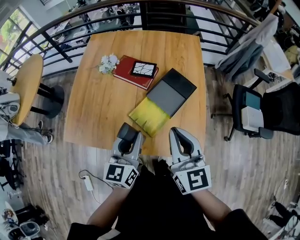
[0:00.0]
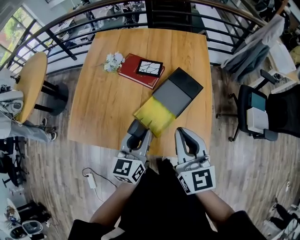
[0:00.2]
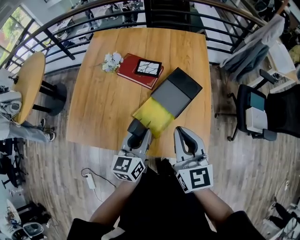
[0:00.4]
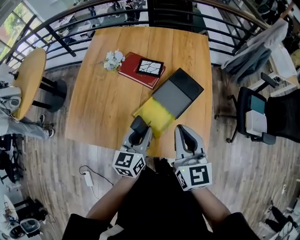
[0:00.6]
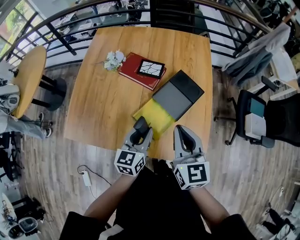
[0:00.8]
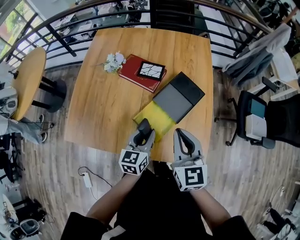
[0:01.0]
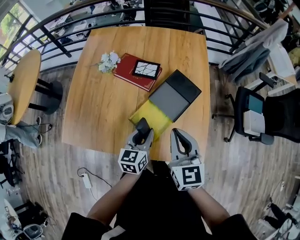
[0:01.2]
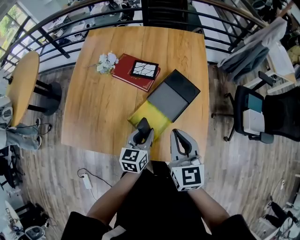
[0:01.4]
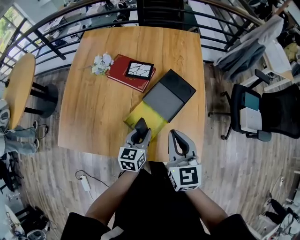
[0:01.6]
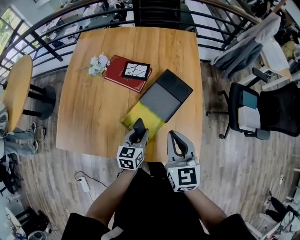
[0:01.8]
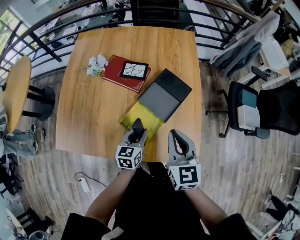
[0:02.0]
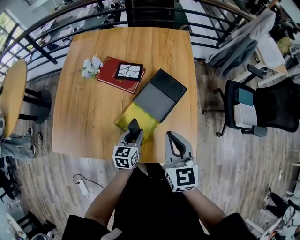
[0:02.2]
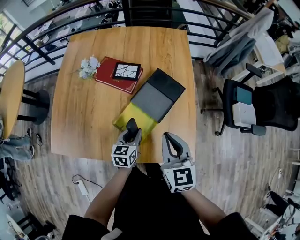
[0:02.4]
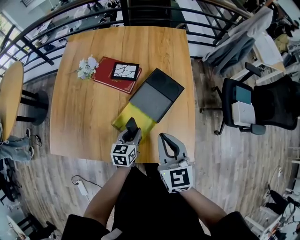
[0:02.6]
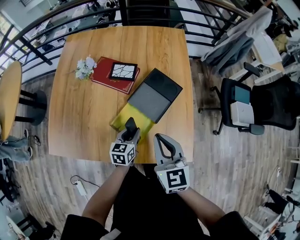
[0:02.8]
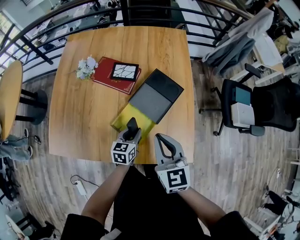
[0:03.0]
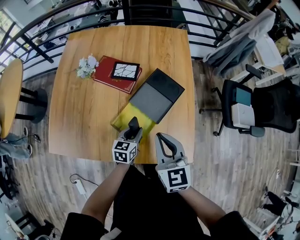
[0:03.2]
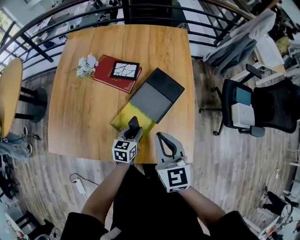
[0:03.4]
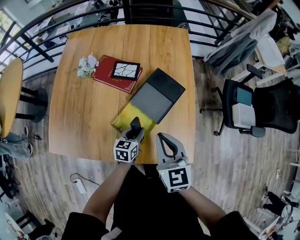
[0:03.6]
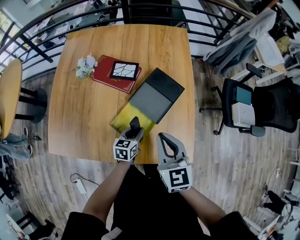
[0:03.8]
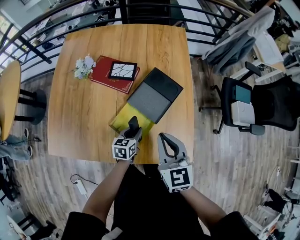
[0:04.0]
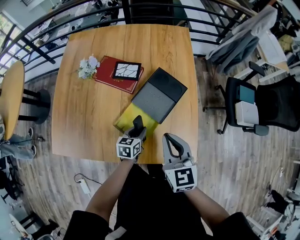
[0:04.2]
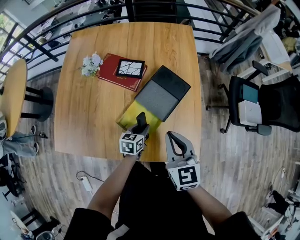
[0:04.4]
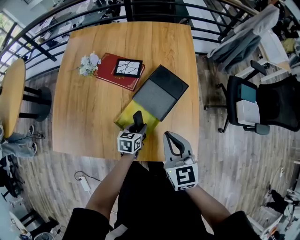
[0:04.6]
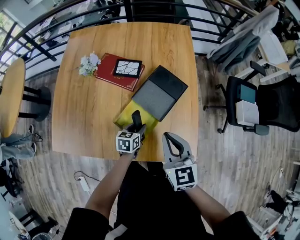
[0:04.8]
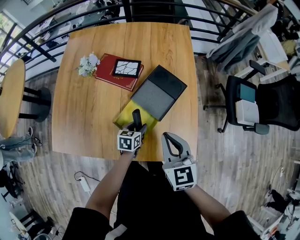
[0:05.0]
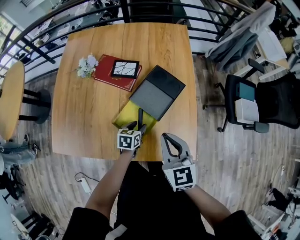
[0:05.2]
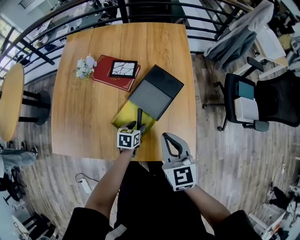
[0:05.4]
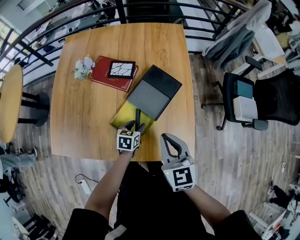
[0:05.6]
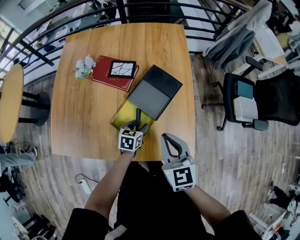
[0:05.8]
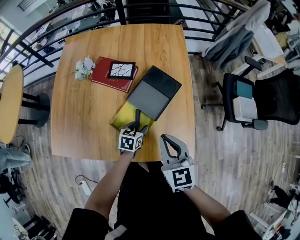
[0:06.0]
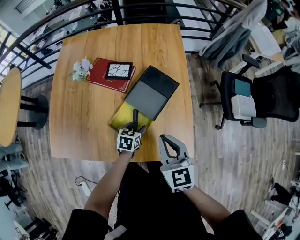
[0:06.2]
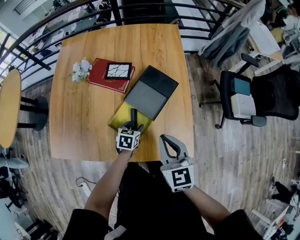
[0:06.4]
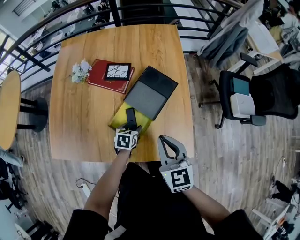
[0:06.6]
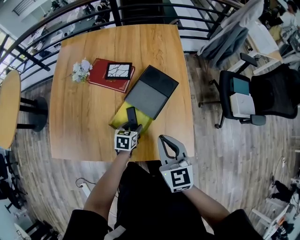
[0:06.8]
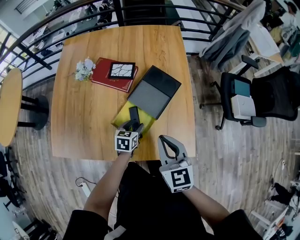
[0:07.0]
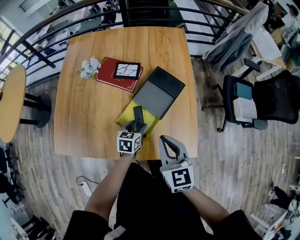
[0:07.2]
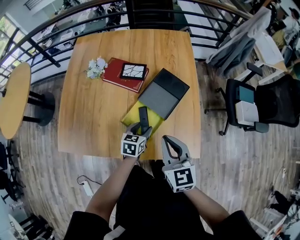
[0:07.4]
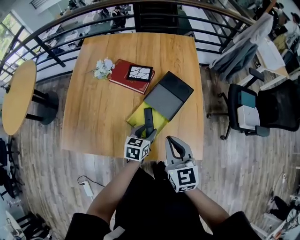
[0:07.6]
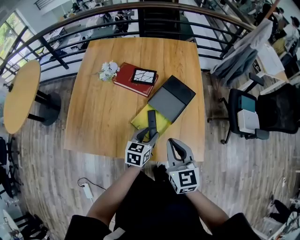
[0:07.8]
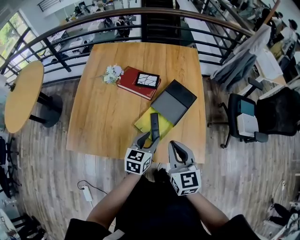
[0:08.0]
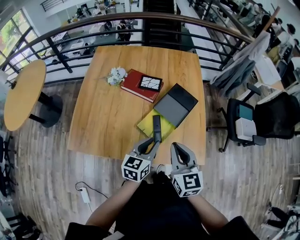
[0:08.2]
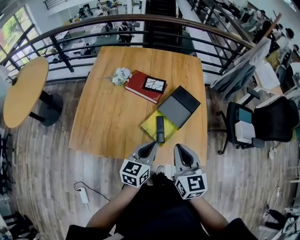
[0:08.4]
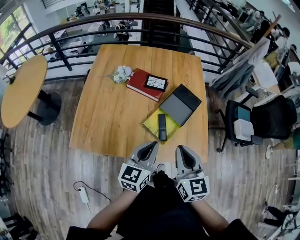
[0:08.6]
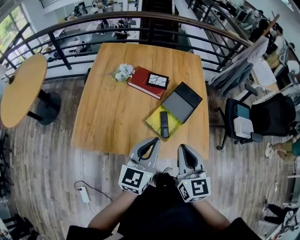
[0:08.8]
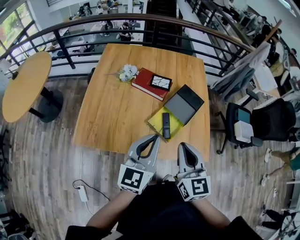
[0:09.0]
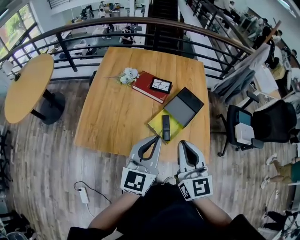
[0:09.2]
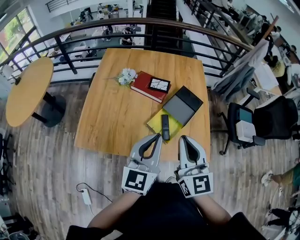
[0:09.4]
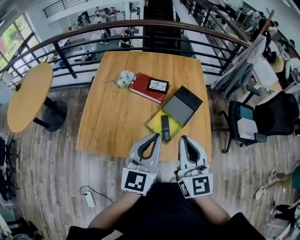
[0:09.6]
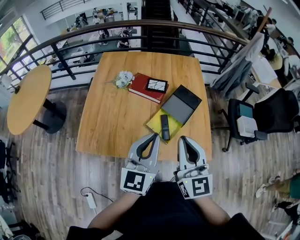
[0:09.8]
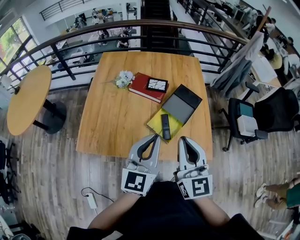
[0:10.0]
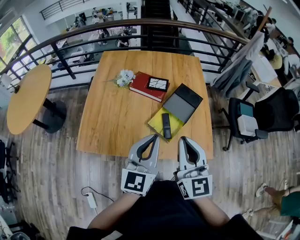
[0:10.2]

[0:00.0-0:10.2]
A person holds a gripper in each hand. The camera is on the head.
0:00.0 to 0:01.4: The left gripper travels downward and forward by about 15 cm. Meanwhile the right gripper goes about 5 cm downward.
0:01.4 to 0:03.0: The left gripper moves downward, approximately 10 cm.
0:03.0 to 0:04.4: The grippers make only small movements.
0:04.4 to 0:05.8: The left gripper opens its fingers.
0:05.8 to 0:07.2: The grippers move only a little.
0:07.2 to 0:08.8: The left gripper shifts about 35 cm upward and backward, points its fingers roughly 40 degrees further upward, and closes up; the right gripper heads backward, upward and to the left, covering approximately 15 cm.
0:08.8 to 0:10.2: The right gripper shifts roughly 5 cm upward.

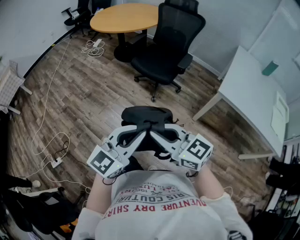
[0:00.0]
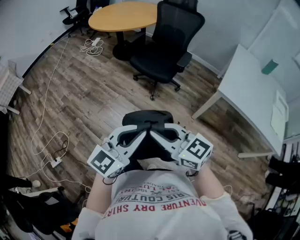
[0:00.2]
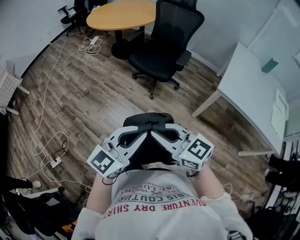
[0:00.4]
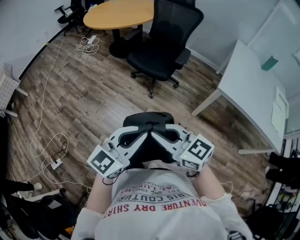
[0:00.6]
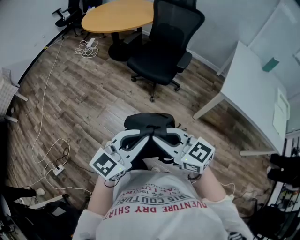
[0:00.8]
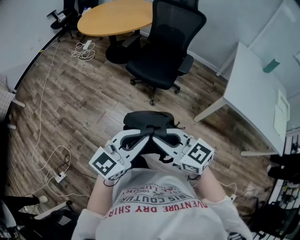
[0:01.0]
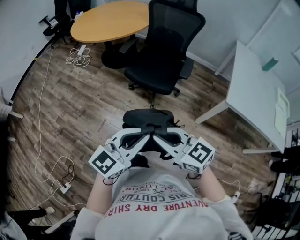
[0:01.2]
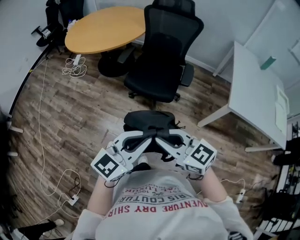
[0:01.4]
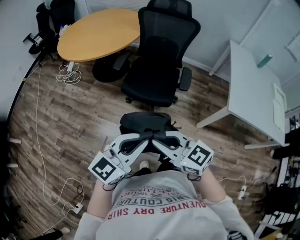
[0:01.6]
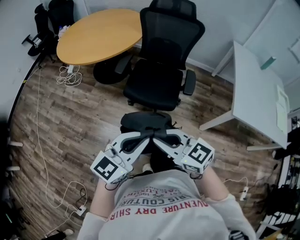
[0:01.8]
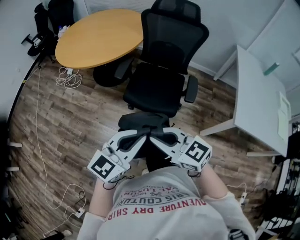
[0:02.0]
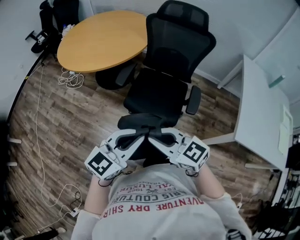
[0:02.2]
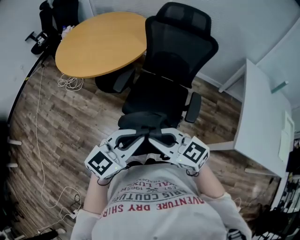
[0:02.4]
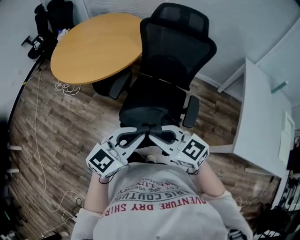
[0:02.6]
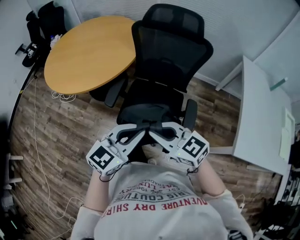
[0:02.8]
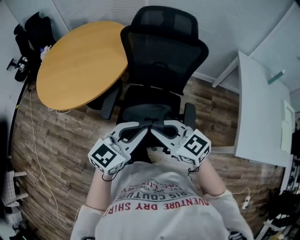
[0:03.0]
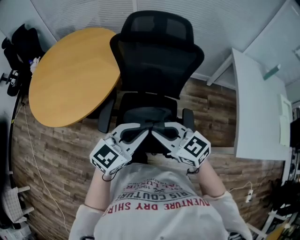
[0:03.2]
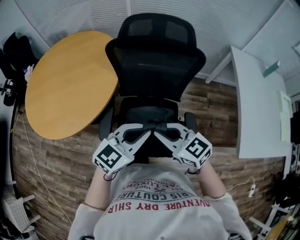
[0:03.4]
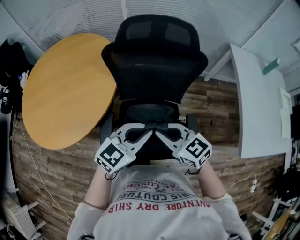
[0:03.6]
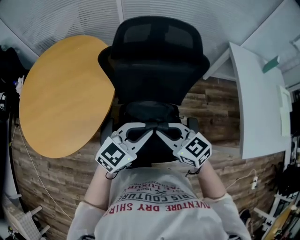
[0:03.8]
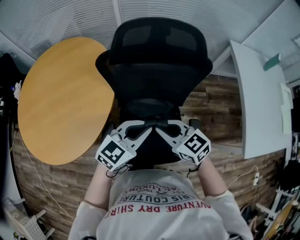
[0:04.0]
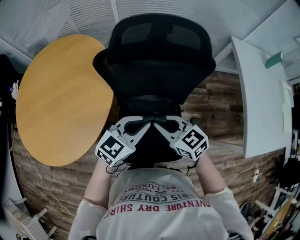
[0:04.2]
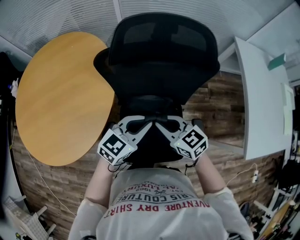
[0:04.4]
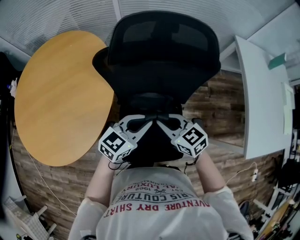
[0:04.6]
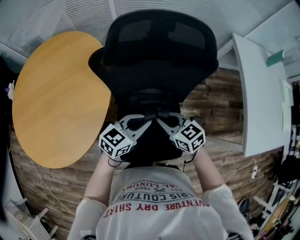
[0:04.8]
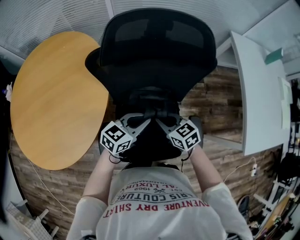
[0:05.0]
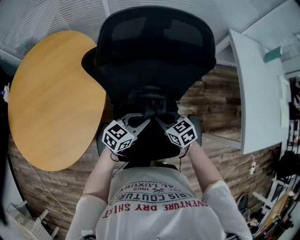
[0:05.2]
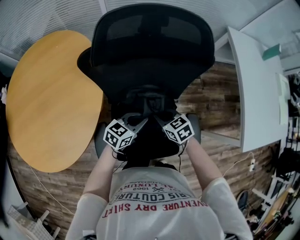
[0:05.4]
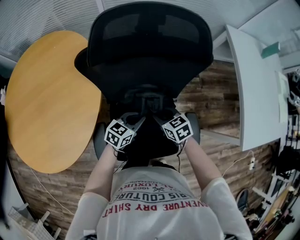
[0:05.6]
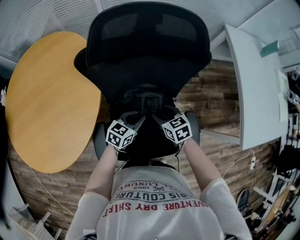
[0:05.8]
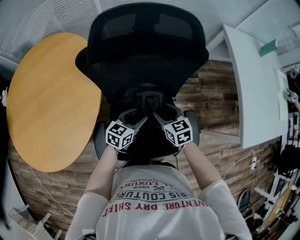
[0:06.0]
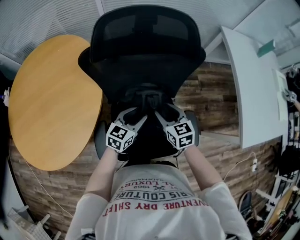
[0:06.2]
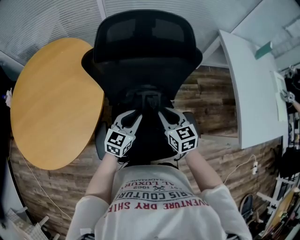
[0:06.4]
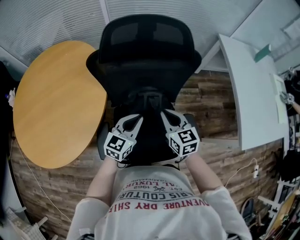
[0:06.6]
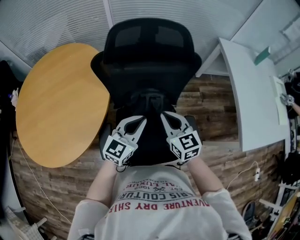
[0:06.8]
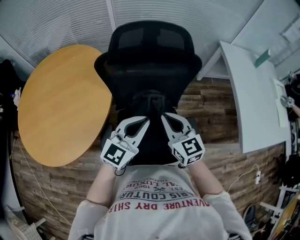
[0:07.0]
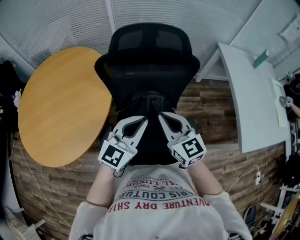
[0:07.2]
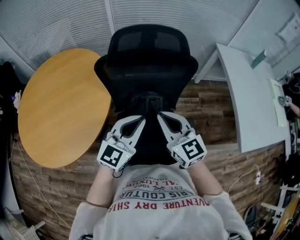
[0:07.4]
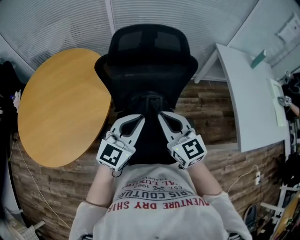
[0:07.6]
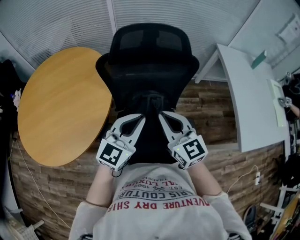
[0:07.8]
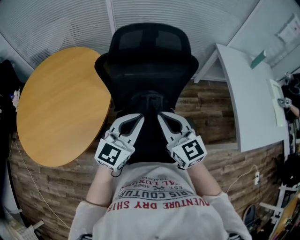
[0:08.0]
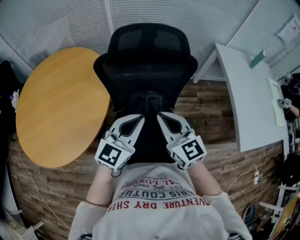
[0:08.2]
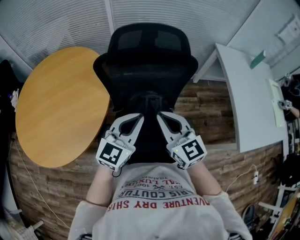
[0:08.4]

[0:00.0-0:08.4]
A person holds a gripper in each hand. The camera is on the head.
0:00.0 to 0:01.4: The two grippers go approximately 25 cm forward.
0:01.4 to 0:02.8: Both grippers move forward, roughly 40 cm.
0:02.8 to 0:04.2: Both grippers travel together forward, approximately 30 cm. The right gripper turns by approximately 30 degrees; the left gripper swivels roughly 20 degrees.
0:04.2 to 0:05.6: The two grippers go roughly 20 cm downward. The left gripper swivels about 20 degrees. The right gripper rotates approximately 20 degrees, and opens up.
0:05.6 to 0:07.0: Both grippers move upward, some 25 cm. The right gripper tilts its fingers some 30 degrees upward, and closes its fingers. Meanwhile the left gripper changes its angle by about 40 degrees, and opens, then closes once more.
0:07.0 to 0:08.4: The right gripper travels upward by approximately 5 cm.

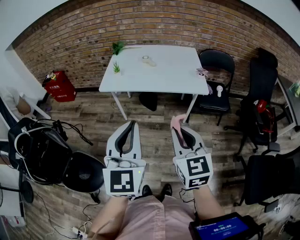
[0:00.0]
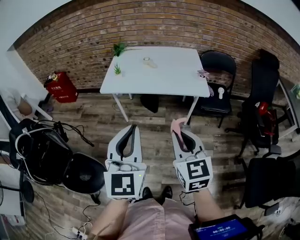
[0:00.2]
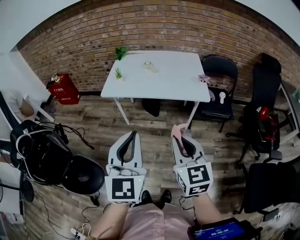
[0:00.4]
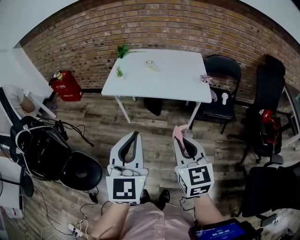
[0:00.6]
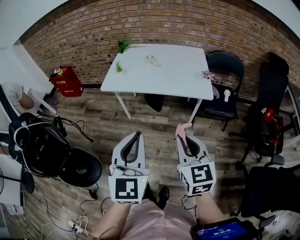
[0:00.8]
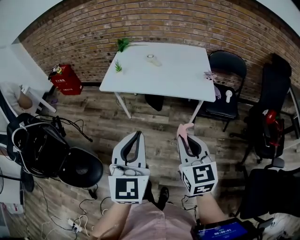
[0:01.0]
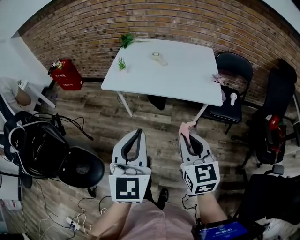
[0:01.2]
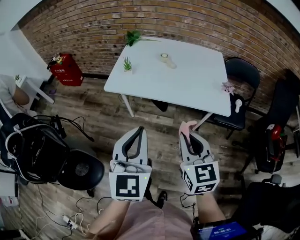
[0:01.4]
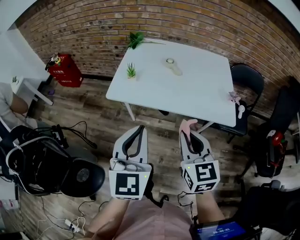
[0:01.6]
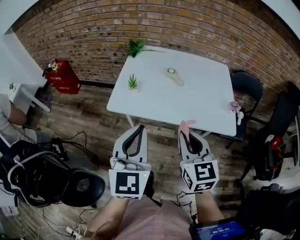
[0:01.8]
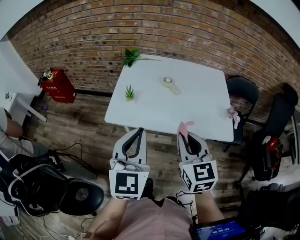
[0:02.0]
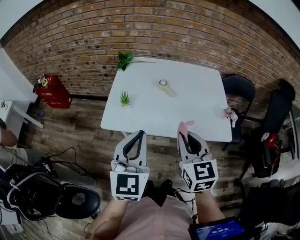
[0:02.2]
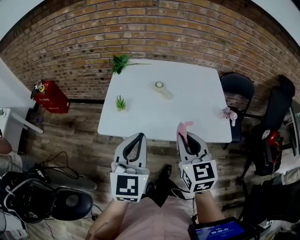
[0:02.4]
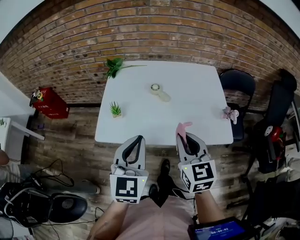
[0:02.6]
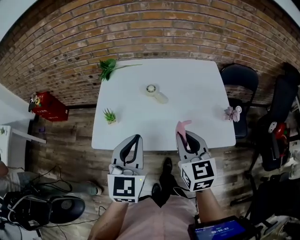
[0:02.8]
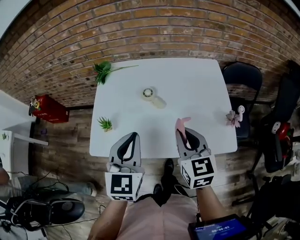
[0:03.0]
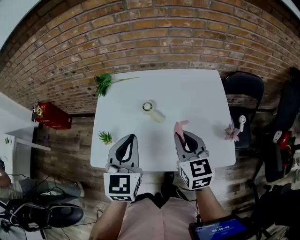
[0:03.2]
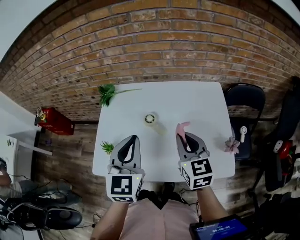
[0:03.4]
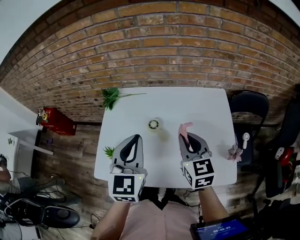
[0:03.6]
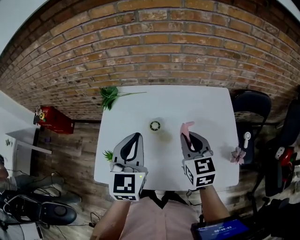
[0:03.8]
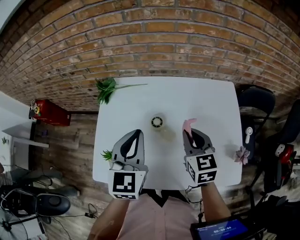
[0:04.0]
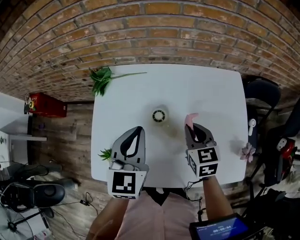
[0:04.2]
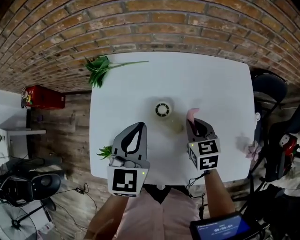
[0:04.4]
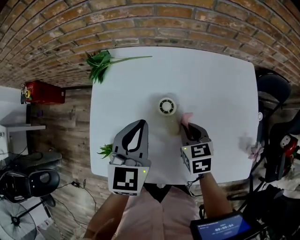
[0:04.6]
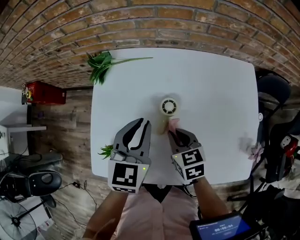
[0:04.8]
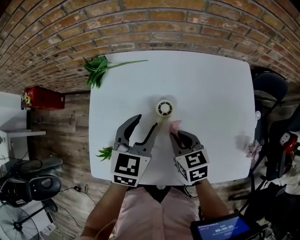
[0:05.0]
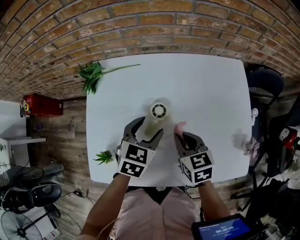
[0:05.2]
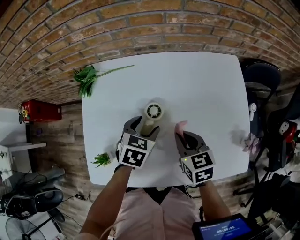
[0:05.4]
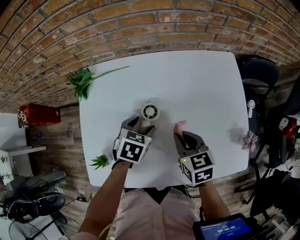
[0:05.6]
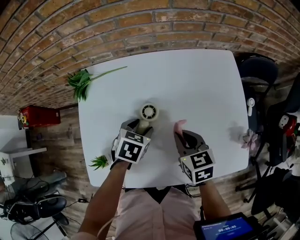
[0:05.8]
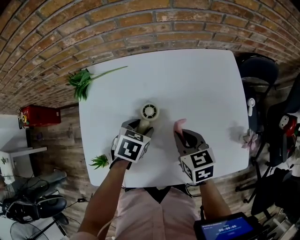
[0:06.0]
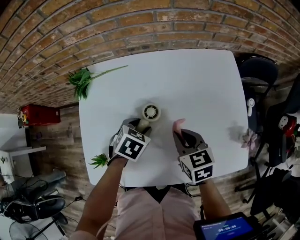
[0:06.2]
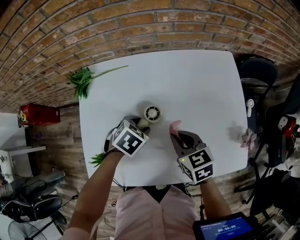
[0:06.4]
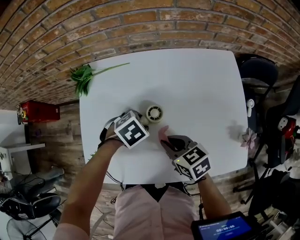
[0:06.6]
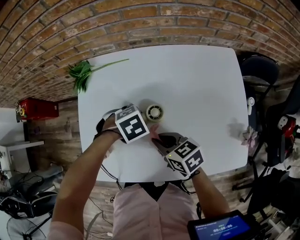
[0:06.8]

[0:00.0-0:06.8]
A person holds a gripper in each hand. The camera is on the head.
0:00.0 to 0:01.4: The left gripper travels forward and downward by approximately 15 cm. Meanwhile the right gripper is displaced forward by roughly 15 cm.
0:01.4 to 0:02.8: The two grippers go approximately 25 cm forward.
0:02.8 to 0:04.0: Both grippers move forward, roughly 20 cm.
0:04.0 to 0:05.4: The left gripper goes some 20 cm downward, points its fingers roughly 40 degrees further downward, and opens; the right gripper heads downward, covering about 10 cm.
0:05.4 to 0:06.8: The left gripper swivels roughly 50 degrees. Meanwhile the right gripper ends up some 10 cm from where it was, and changes its angle by roughly 30 degrees.
